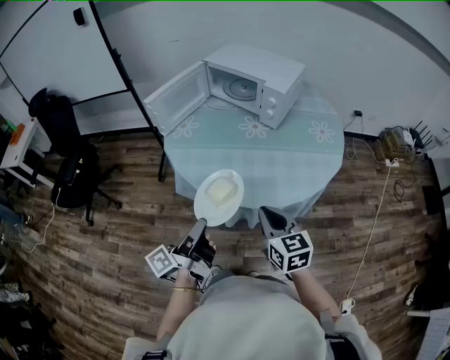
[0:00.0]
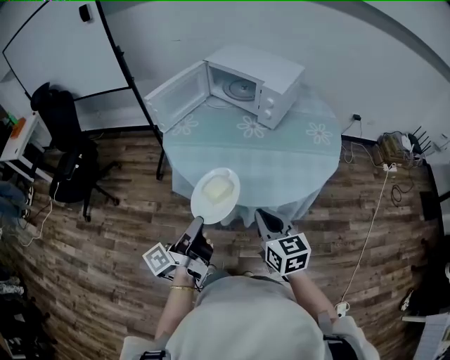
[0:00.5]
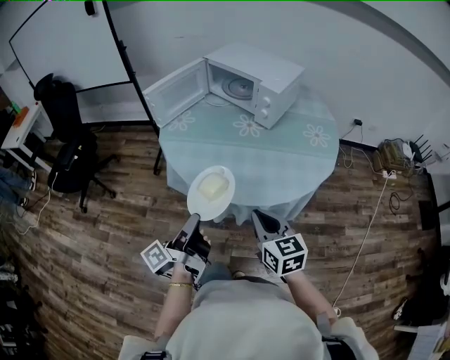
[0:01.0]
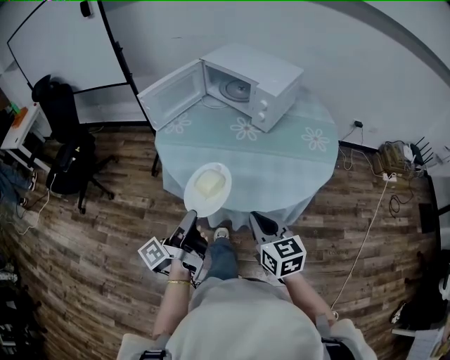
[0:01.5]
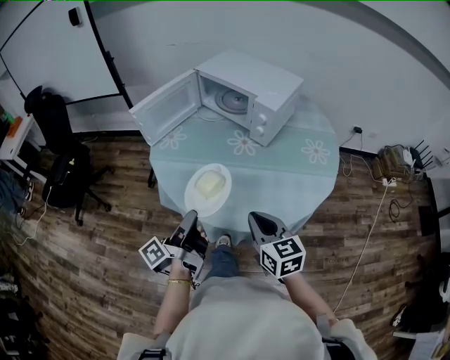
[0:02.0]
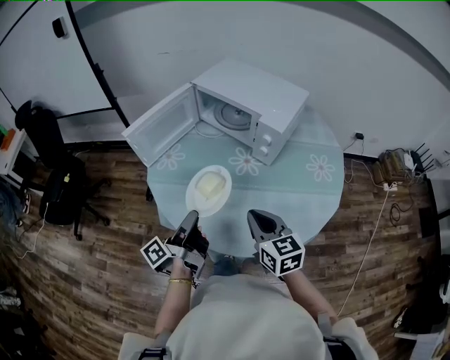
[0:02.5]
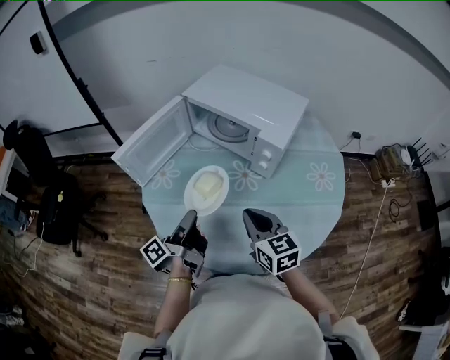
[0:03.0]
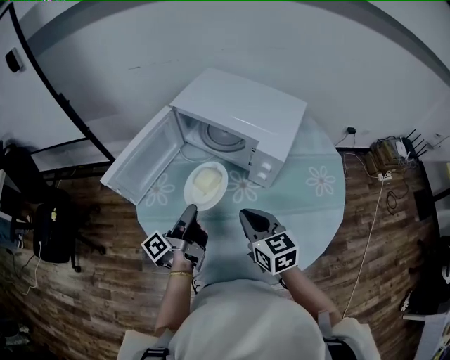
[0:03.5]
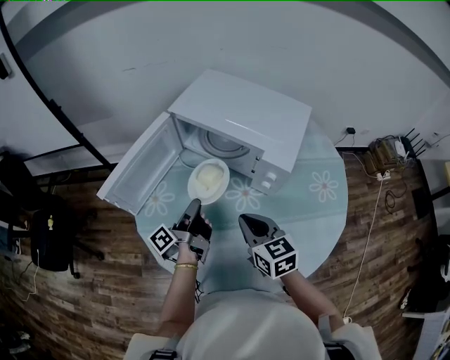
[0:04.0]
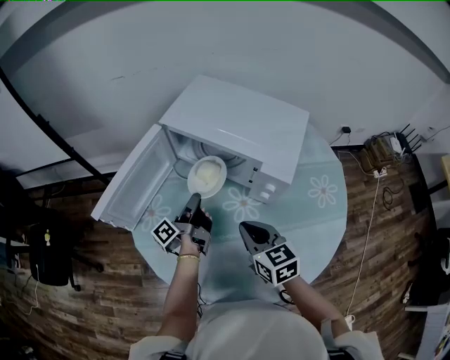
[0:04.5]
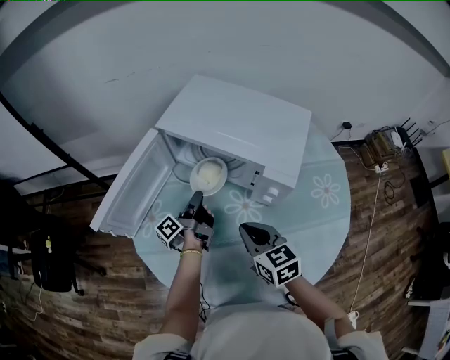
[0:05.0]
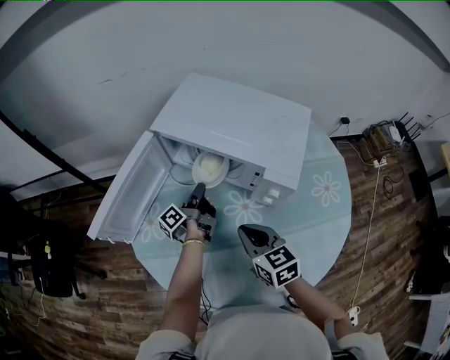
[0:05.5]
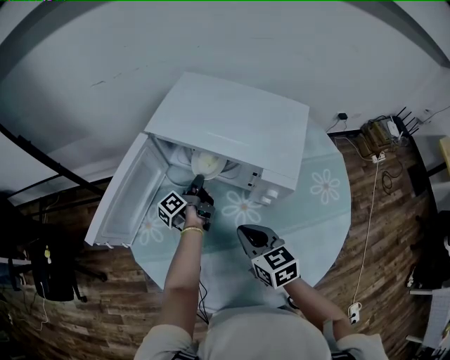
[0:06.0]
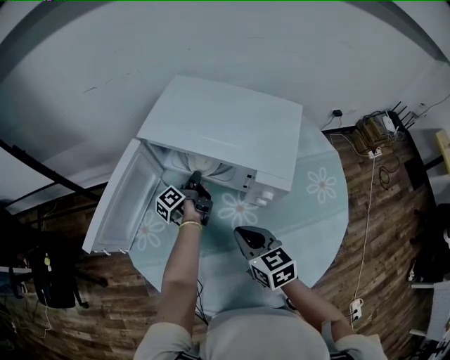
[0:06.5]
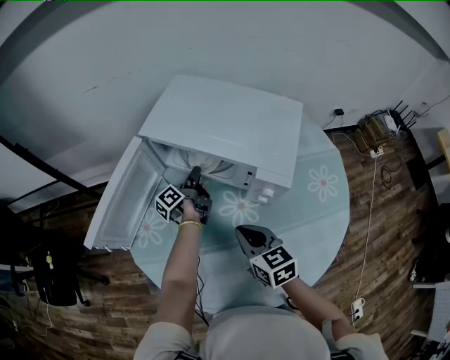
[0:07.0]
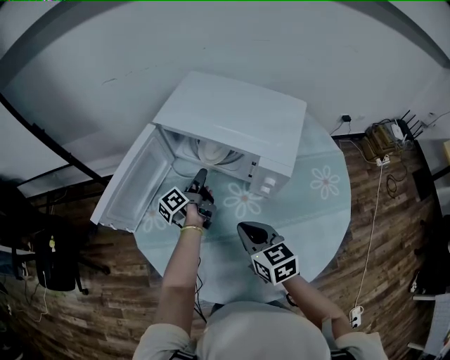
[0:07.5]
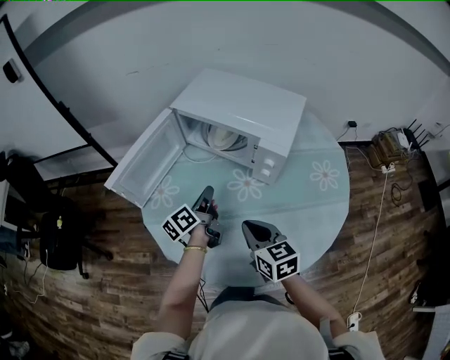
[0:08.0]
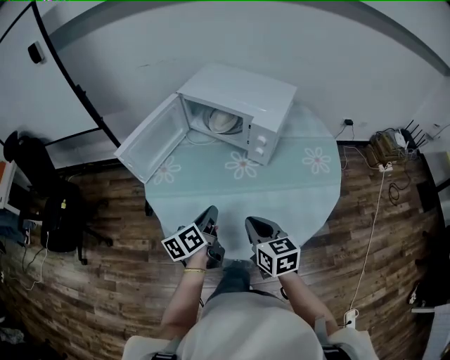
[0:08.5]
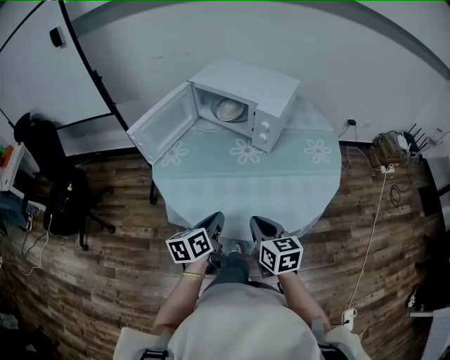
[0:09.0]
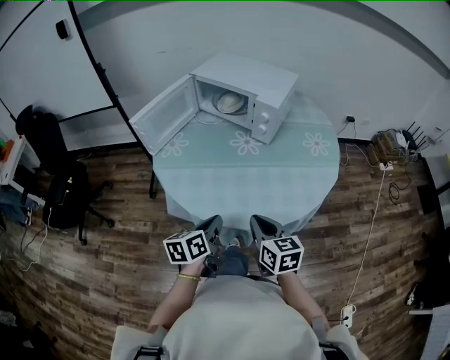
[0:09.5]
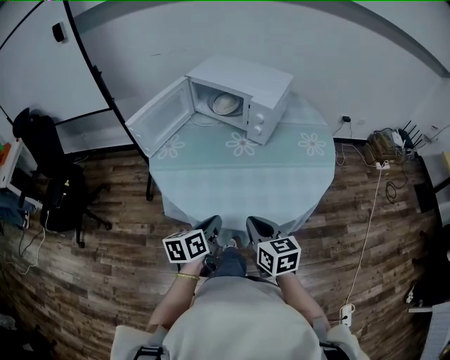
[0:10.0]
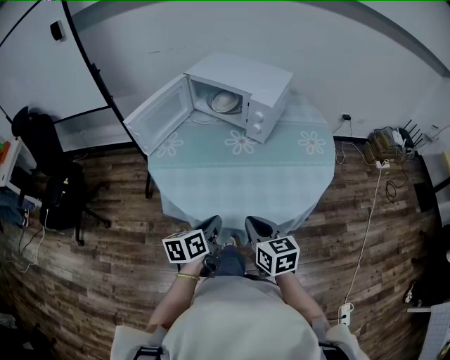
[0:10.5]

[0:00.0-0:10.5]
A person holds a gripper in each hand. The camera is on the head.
0.0 to 2.0 s: The right gripper moves approximately 10 cm.
2.0 to 4.0 s: The right gripper shifts by roughly 30 cm.
4.0 to 6.5 s: The right gripper moves roughly 5 cm.
6.5 to 8.5 s: The right gripper moves approximately 25 cm.
8.5 to 10.5 s: The right gripper moves roughly 15 cm.

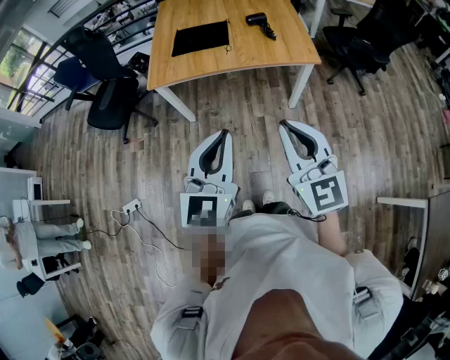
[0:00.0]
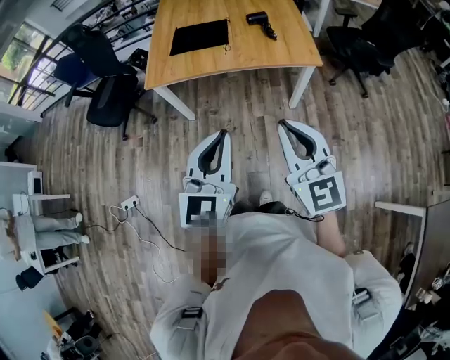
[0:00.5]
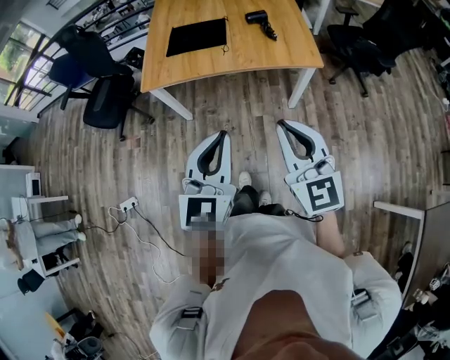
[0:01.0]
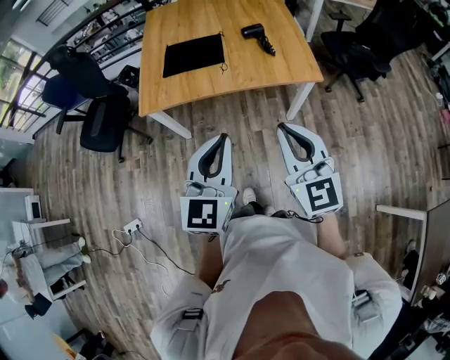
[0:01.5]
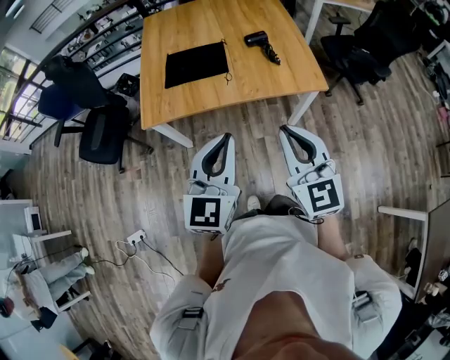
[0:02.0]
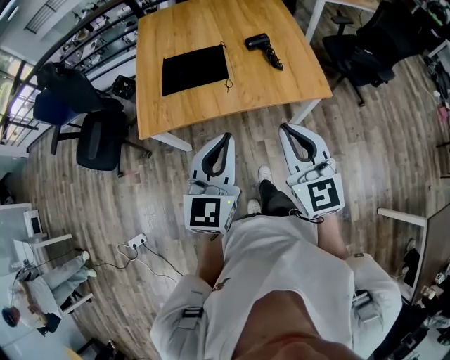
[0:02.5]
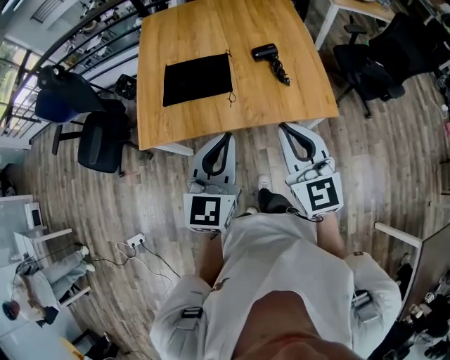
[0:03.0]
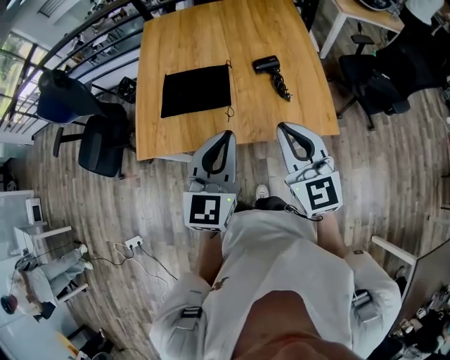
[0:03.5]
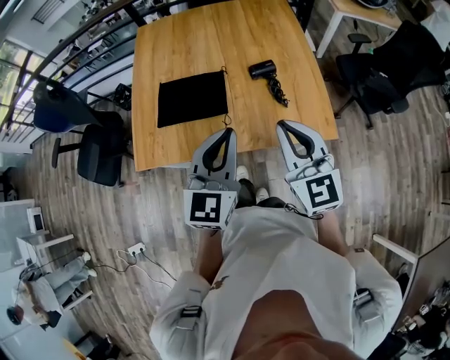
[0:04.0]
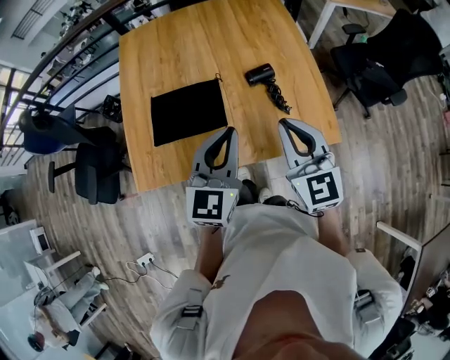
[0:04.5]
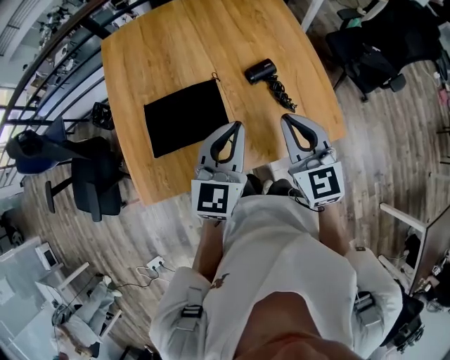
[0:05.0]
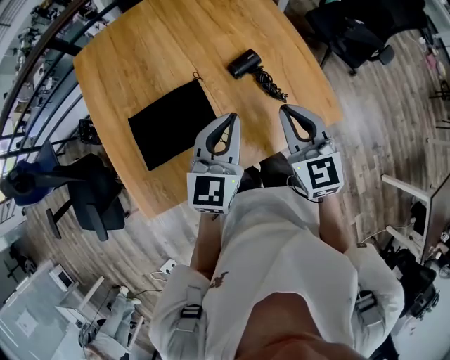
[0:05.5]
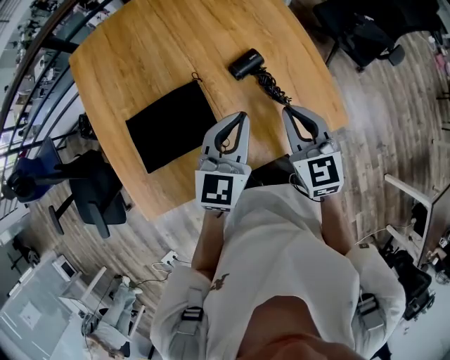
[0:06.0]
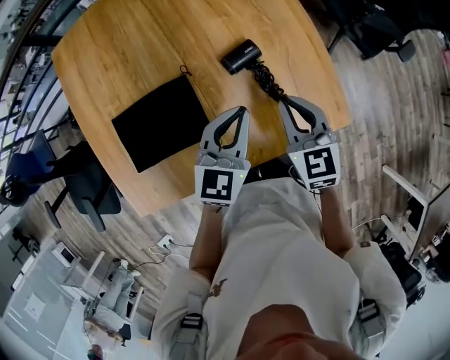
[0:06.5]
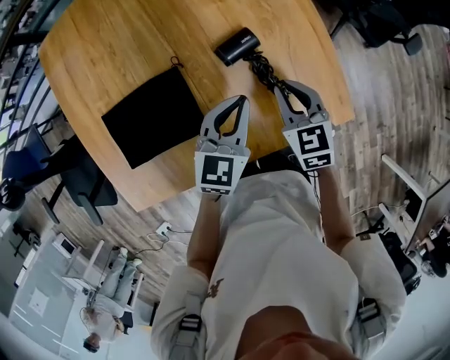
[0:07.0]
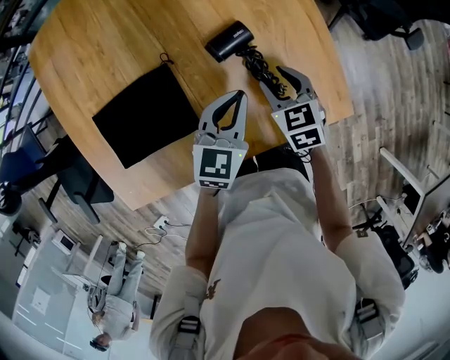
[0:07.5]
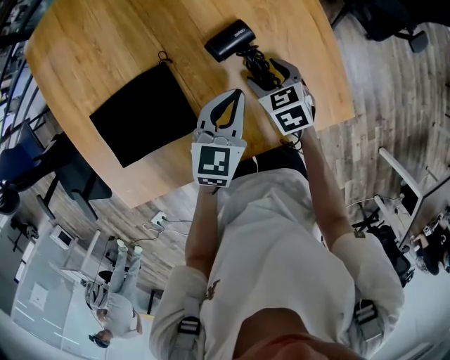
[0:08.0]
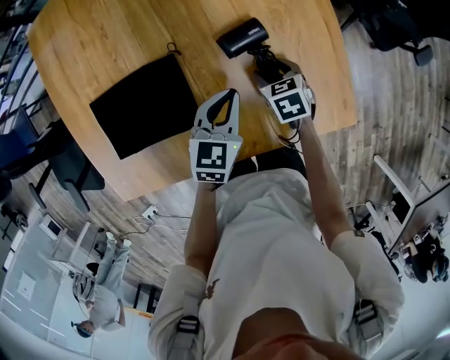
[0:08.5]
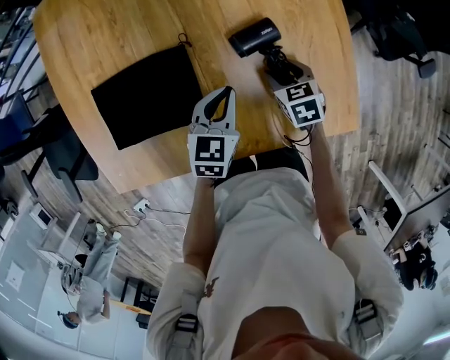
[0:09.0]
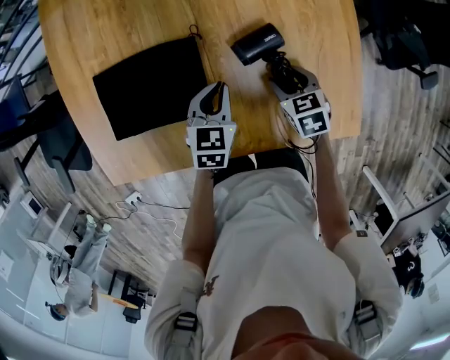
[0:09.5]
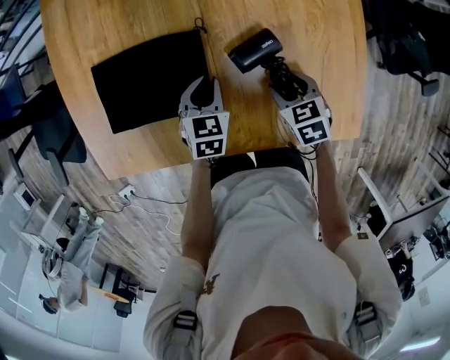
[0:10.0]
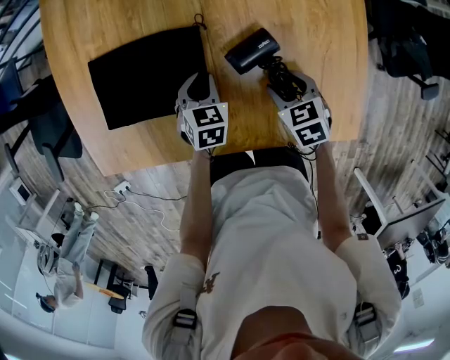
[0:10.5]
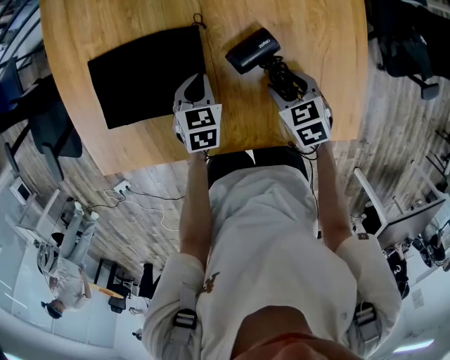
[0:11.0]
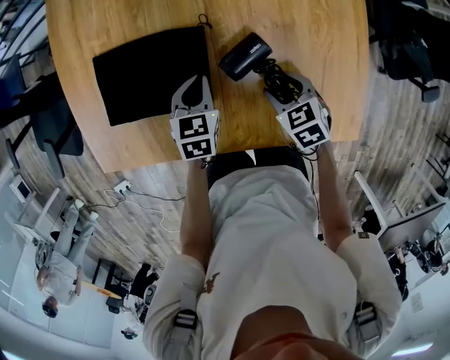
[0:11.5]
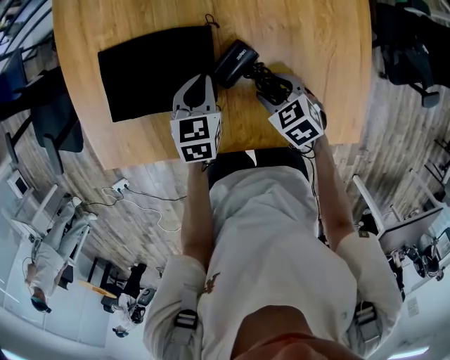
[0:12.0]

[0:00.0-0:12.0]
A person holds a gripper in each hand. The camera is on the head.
0.0 to 2.0 s: Both grippers move forward, about 20 cm.
2.0 to 4.0 s: Both grippers move forward, about 30 cm.
4.0 to 6.0 s: The grippers both shift forward and downward by approximately 25 cm. The right gripper changes its angle by some 30 degrees; the left gripper changes its angle by about 30 degrees.
6.0 to 8.0 s: The two grippers go about 20 cm downward. The right gripper swivels some 30 degrees, and opens its fingers.
8.0 to 10.0 s: The right gripper moves about 5 cm, while the left gripper shifts roughly 20 cm to the left and downward, and turns by approximately 30 degrees.
10.0 to 12.0 s: The right gripper moves to the left, roughly 5 cm.

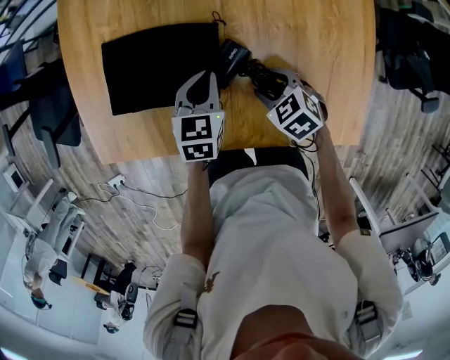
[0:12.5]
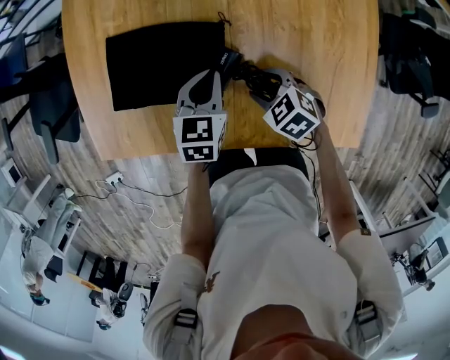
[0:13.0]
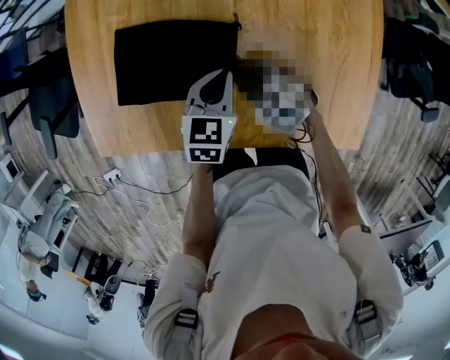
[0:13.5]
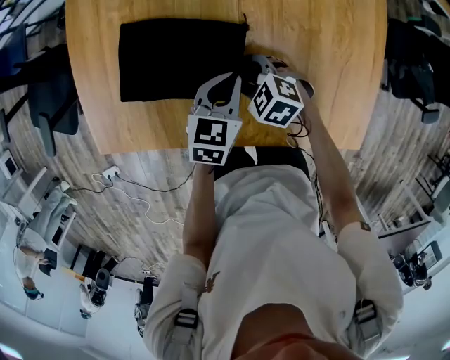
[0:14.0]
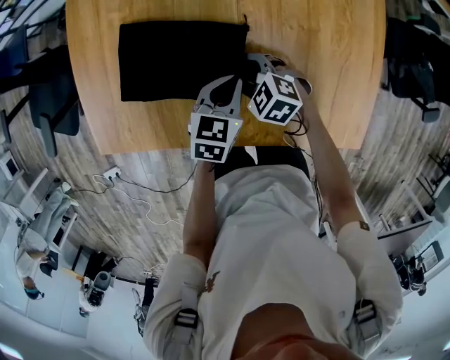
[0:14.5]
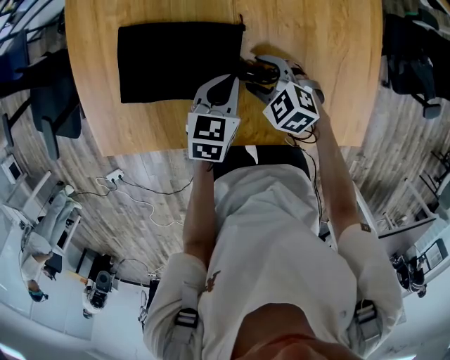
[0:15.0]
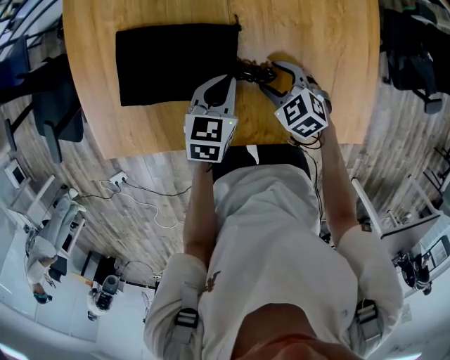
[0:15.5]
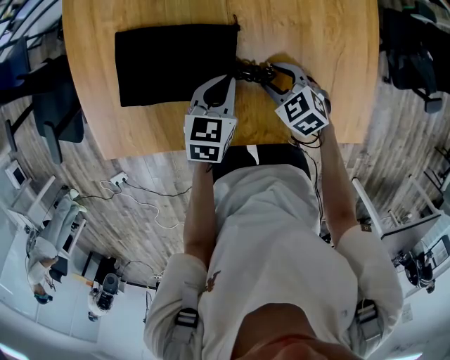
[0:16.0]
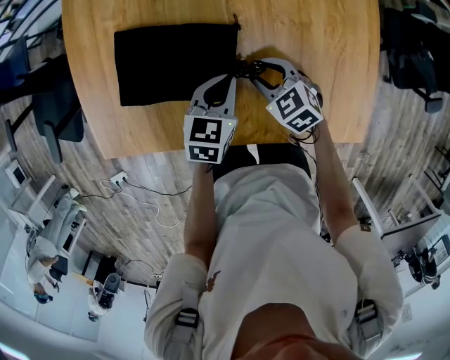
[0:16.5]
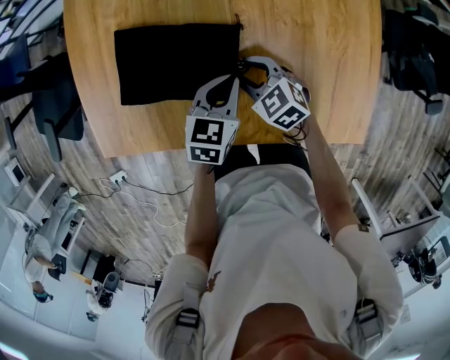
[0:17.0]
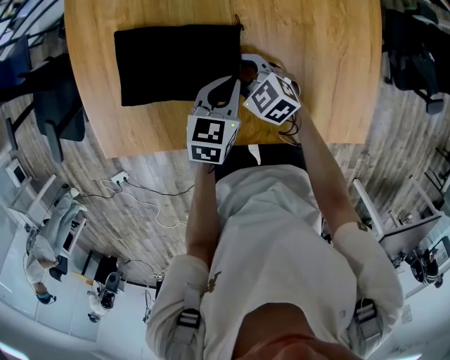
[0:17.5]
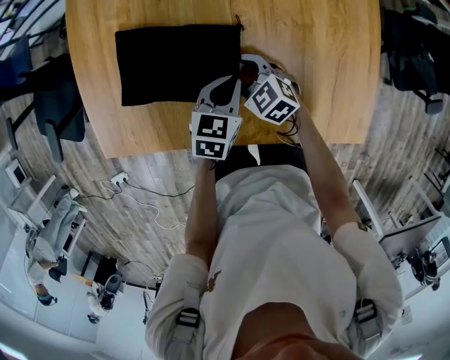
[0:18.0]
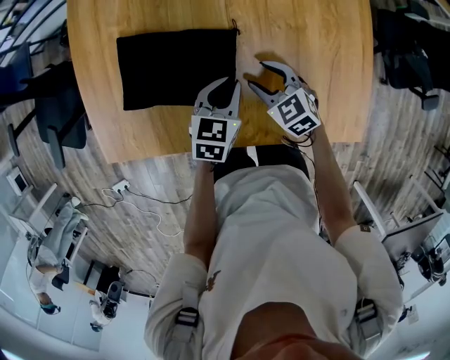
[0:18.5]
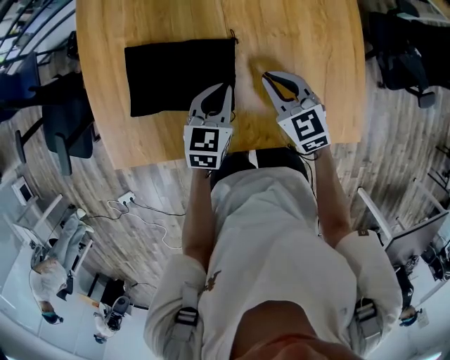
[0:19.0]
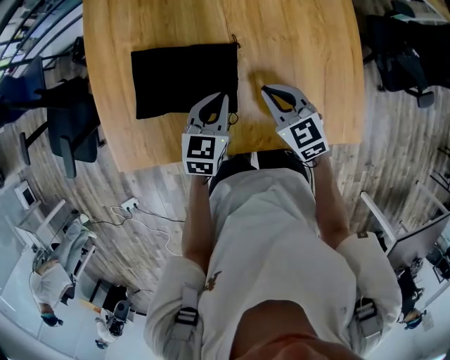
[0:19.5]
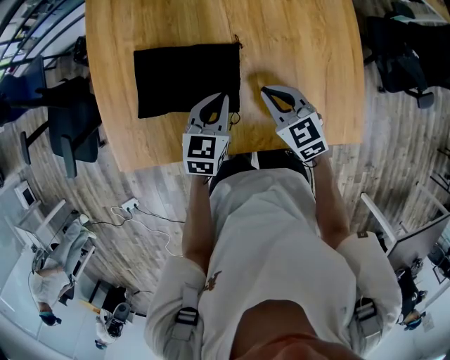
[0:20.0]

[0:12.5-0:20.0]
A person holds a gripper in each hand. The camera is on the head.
12.5 to 14.5 s: The right gripper travels to the left by roughly 10 cm, and swivels roughly 20 degrees.
14.5 to 16.5 s: The right gripper heads to the right, covering some 5 cm, and swivels approximately 20 degrees.
16.5 to 18.0 s: The right gripper shifts some 5 cm to the left.
18.0 to 20.0 s: The left gripper moves upward, about 5 cm. Meanwhile the right gripper heads upward and to the right, covering approximately 15 cm, swivels some 20 degrees, and closes up.
